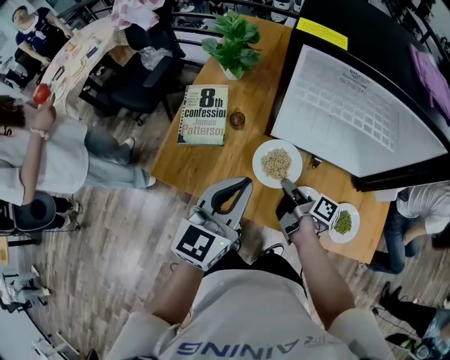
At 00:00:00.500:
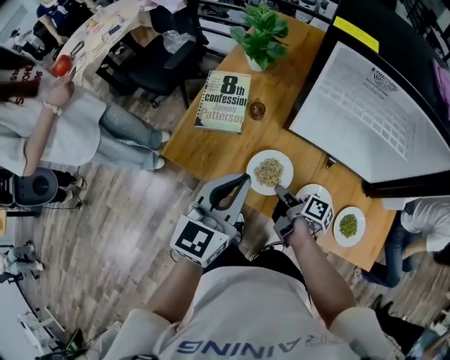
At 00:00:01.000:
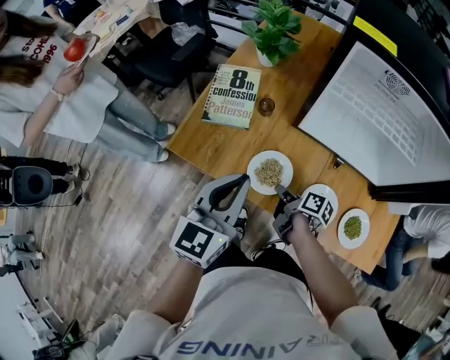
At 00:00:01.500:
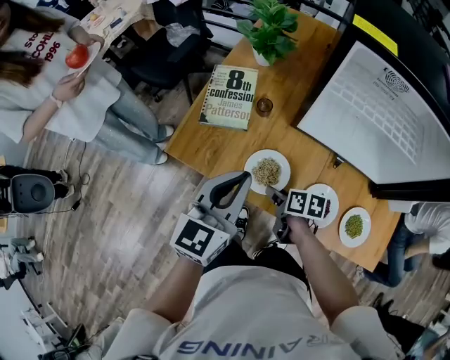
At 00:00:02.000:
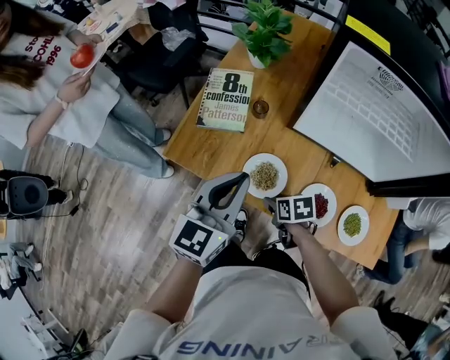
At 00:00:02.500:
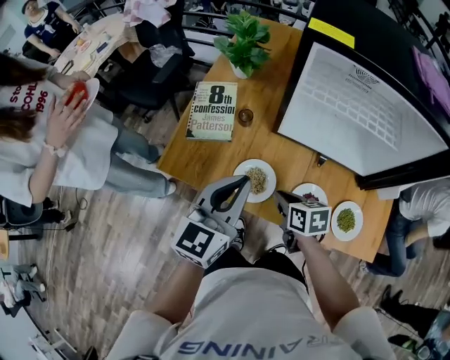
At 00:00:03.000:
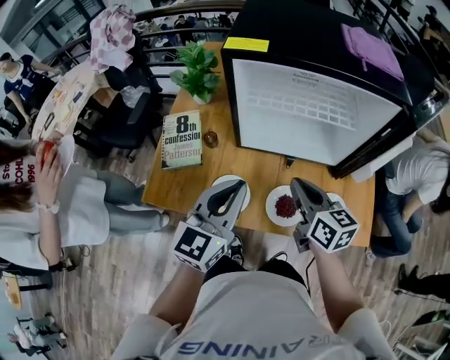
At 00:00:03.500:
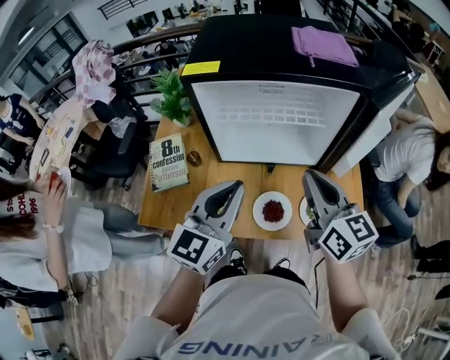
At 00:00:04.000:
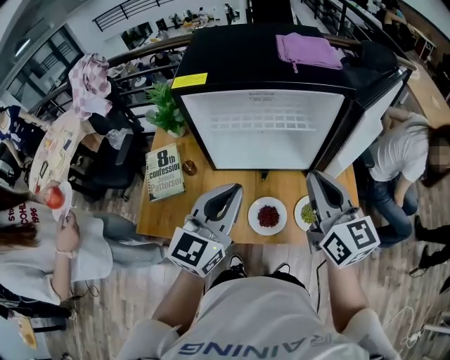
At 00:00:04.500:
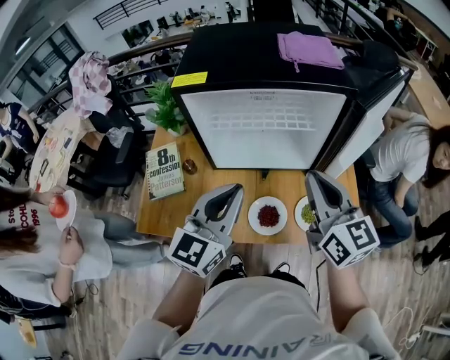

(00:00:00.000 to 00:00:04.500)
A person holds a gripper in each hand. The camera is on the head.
00:00:00.000 - 00:00:02.000: The right gripper heads to the left, downward and backward, covering about 15 cm, tilts its fingers about 40 degrees downward, and opens its fingers. Meanwhile the left gripper goes about 5 cm to the left.
00:00:02.000 - 00:00:04.500: The right gripper is displaced upward by about 40 cm, angles its fingers upward, by approximately 60 degrees, and closes its fingers. Meanwhile the left gripper changes place by some 25 cm, and swivels some 30 degrees.

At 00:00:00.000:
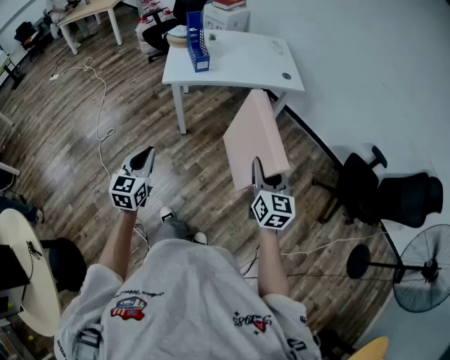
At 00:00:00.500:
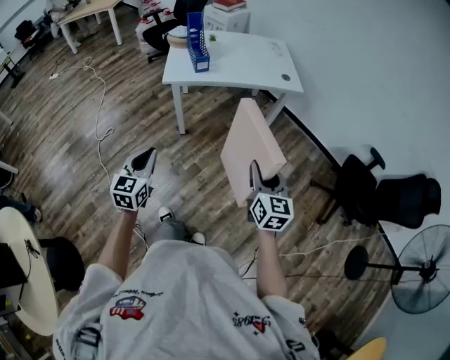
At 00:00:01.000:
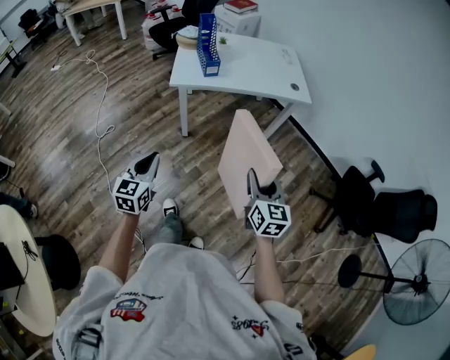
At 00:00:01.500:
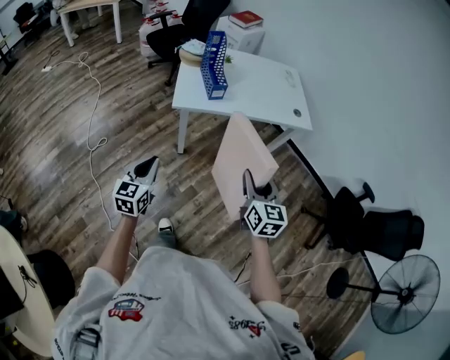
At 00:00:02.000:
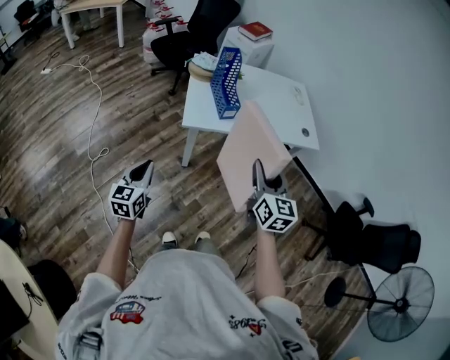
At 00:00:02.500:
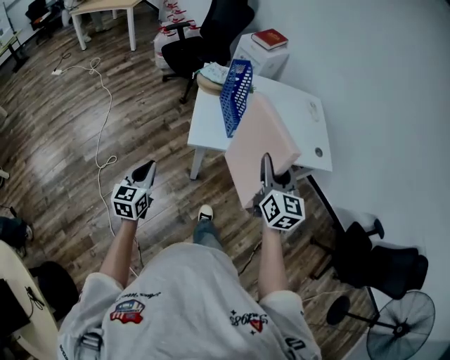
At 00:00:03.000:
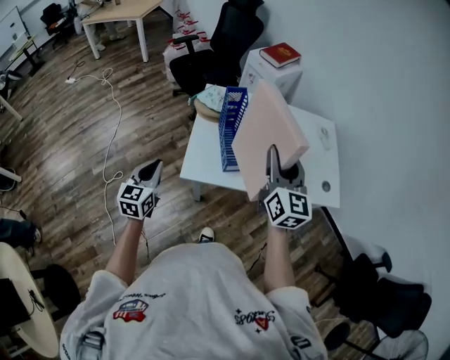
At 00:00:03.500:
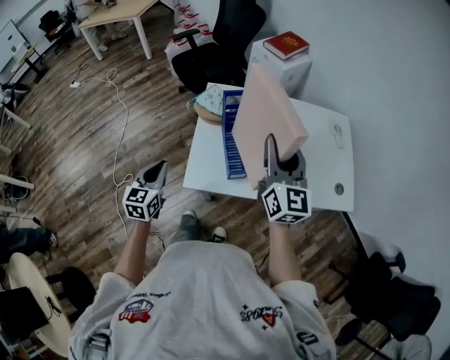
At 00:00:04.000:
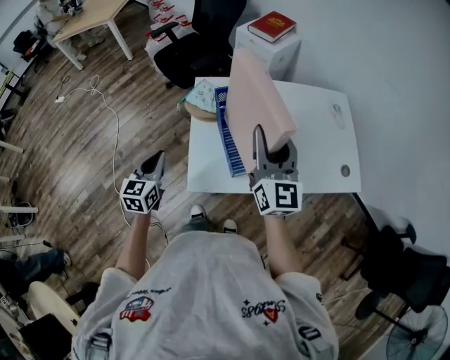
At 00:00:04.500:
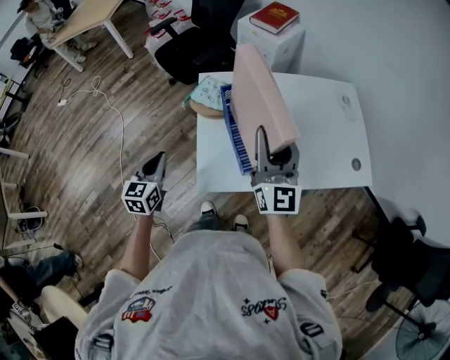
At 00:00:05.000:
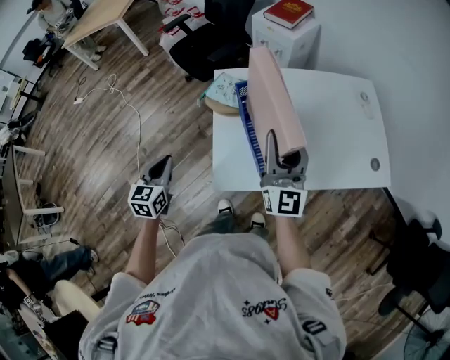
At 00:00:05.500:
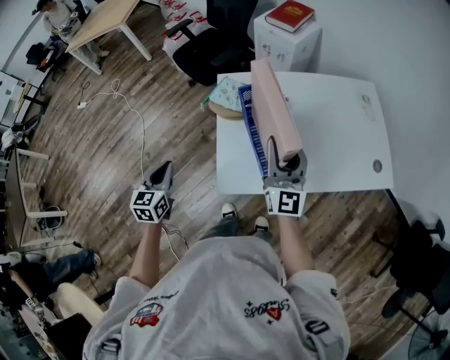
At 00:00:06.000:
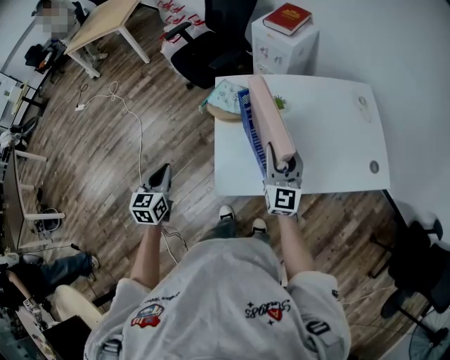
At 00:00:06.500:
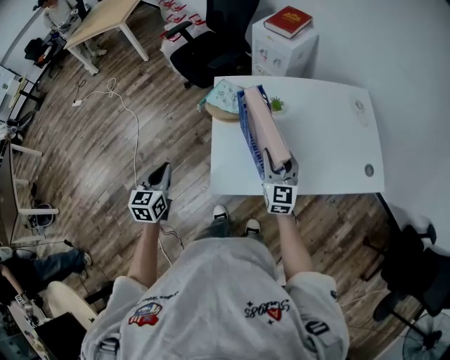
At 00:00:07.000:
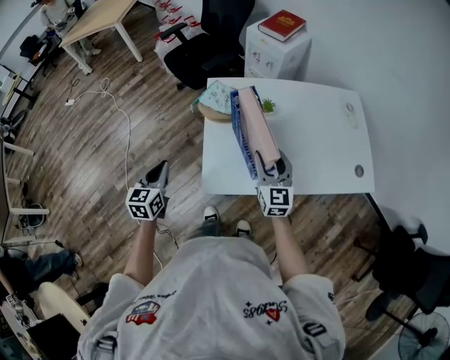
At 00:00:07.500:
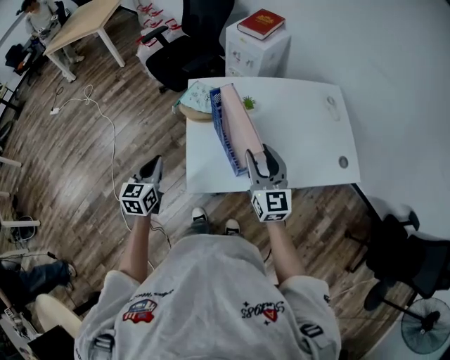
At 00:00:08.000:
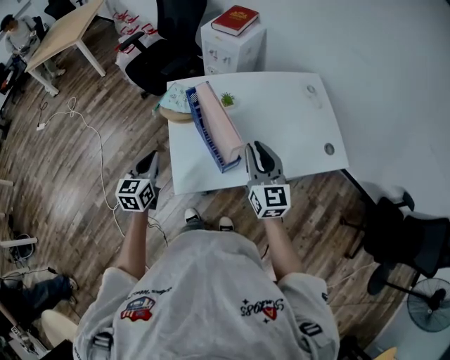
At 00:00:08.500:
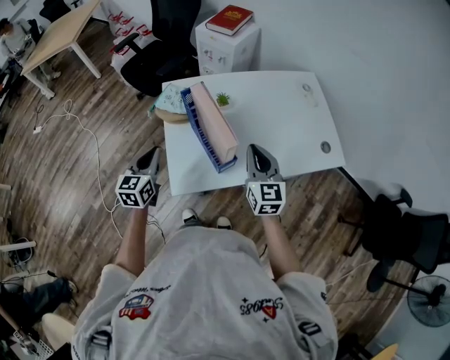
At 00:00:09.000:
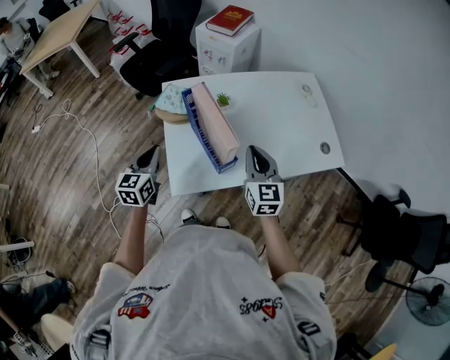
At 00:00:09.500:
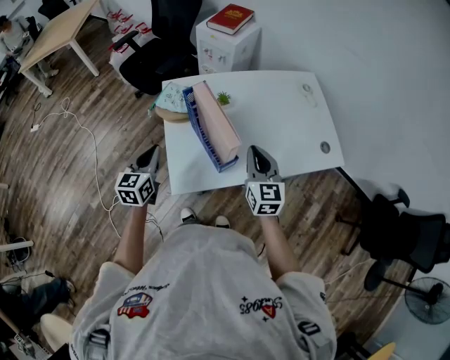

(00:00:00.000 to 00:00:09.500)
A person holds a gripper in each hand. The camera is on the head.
00:00:00.000 - 00:00:02.000: The left gripper goes roughly 35 cm to the left and forward, while the right gripper shifts some 40 cm forward and to the left.
00:00:02.000 - 00:00:04.000: Both grippers are carried forward, roughly 50 cm.
00:00:04.000 - 00:00:05.500: The left gripper is displaced to the left by some 5 cm; the right gripper moves downward, about 10 cm.
00:00:05.500 - 00:00:07.500: The left gripper moves to the right, approximately 5 cm. The right gripper moves approximately 10 cm downward and comes back.
00:00:07.500 - 00:00:09.500: The grippers both shift to the right by approximately 5 cm. The right gripper closes its fingers.

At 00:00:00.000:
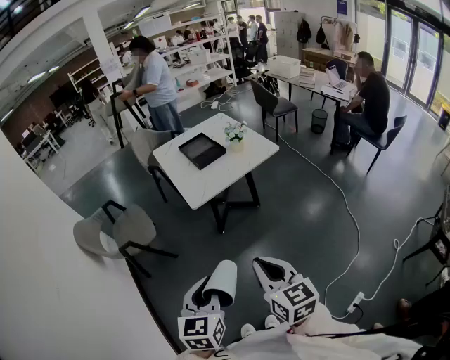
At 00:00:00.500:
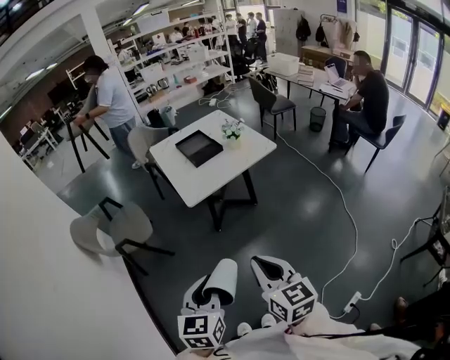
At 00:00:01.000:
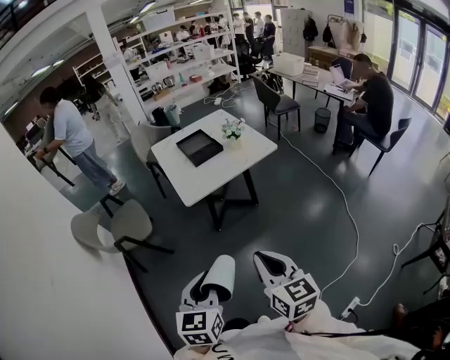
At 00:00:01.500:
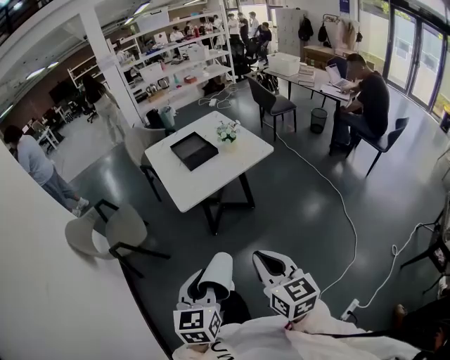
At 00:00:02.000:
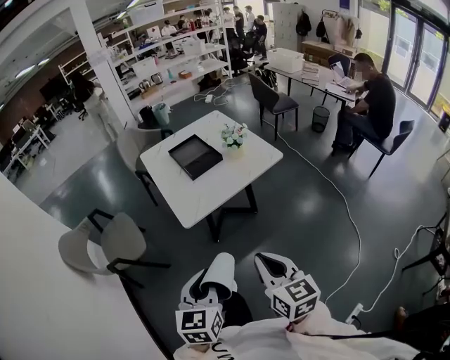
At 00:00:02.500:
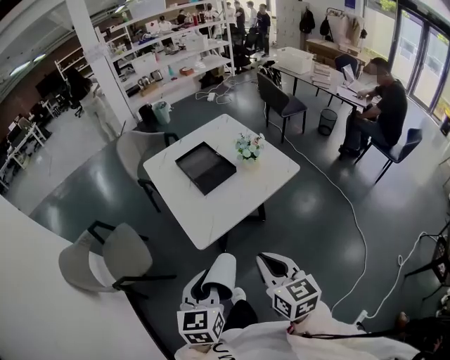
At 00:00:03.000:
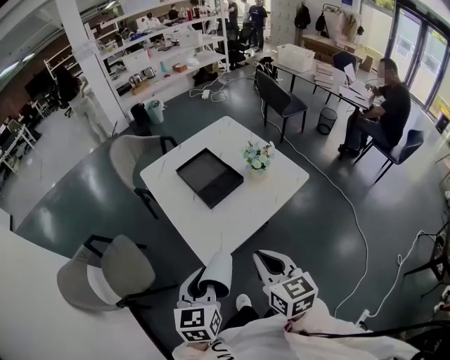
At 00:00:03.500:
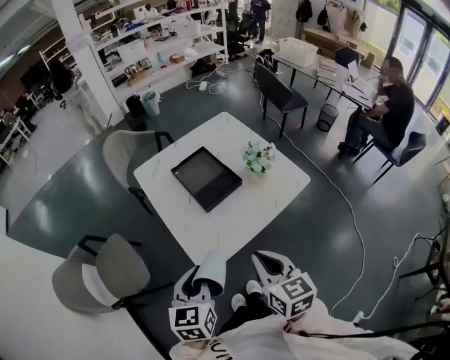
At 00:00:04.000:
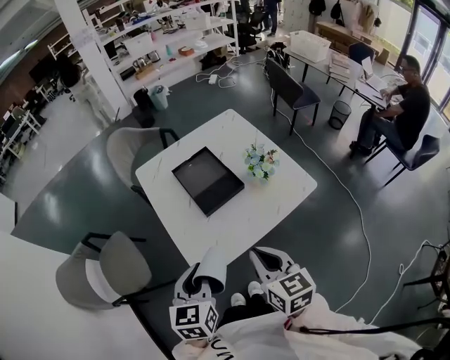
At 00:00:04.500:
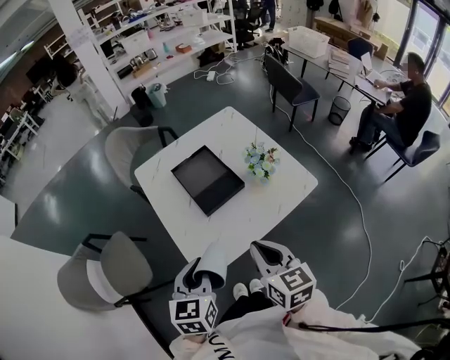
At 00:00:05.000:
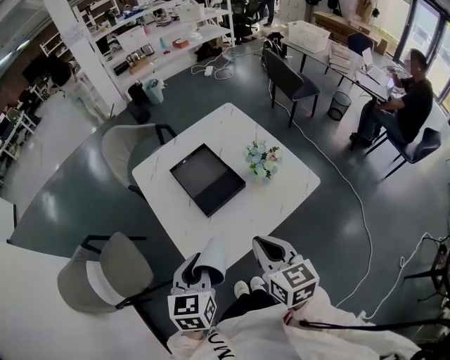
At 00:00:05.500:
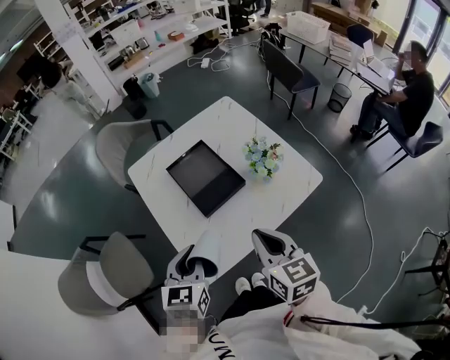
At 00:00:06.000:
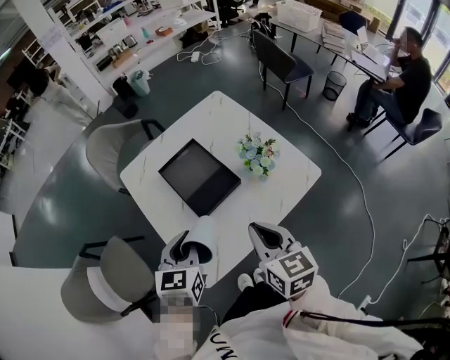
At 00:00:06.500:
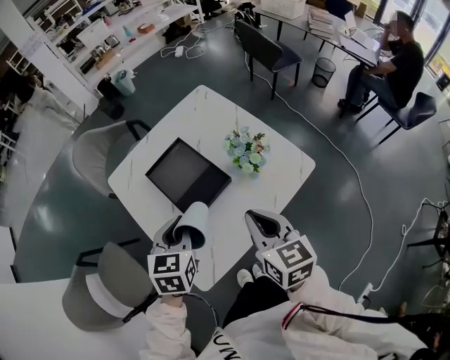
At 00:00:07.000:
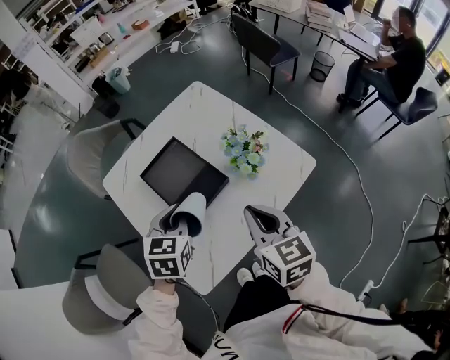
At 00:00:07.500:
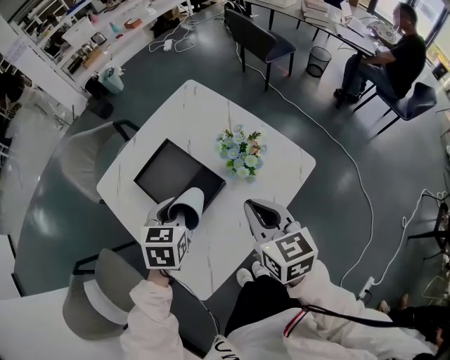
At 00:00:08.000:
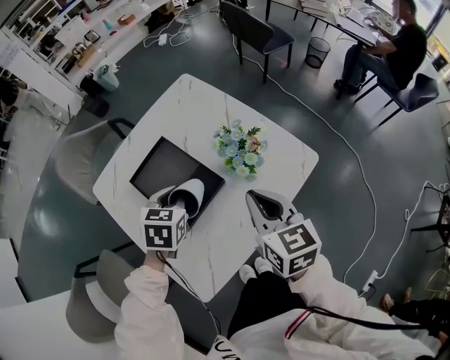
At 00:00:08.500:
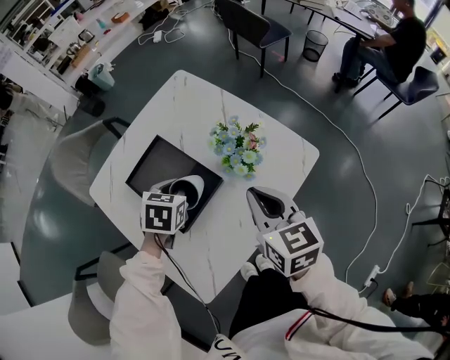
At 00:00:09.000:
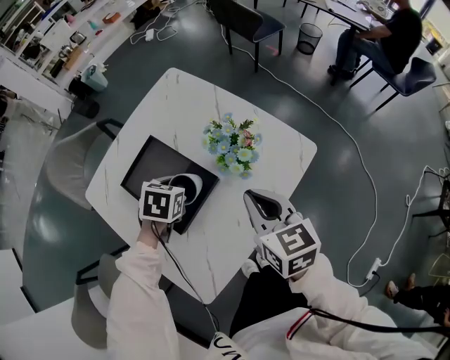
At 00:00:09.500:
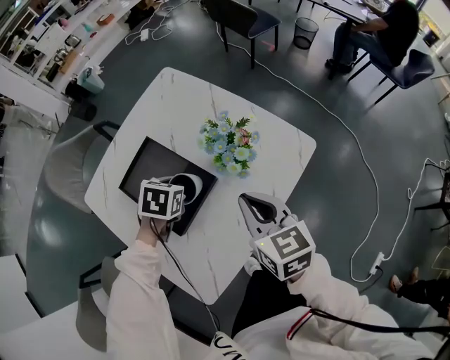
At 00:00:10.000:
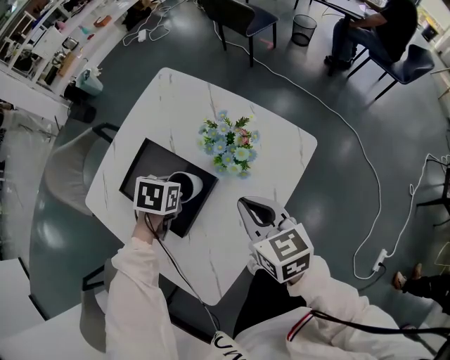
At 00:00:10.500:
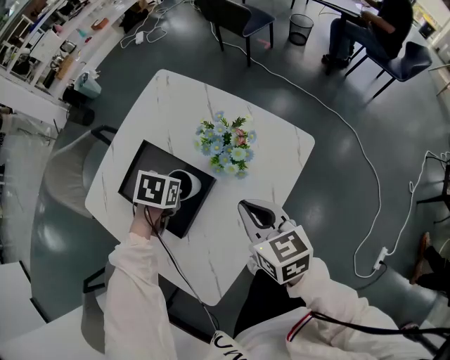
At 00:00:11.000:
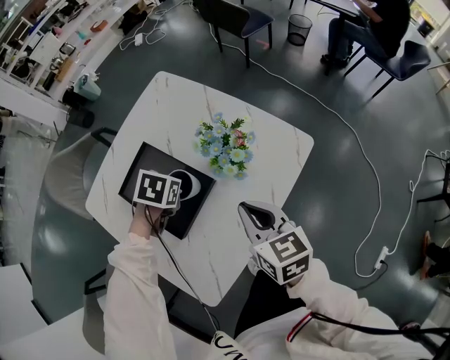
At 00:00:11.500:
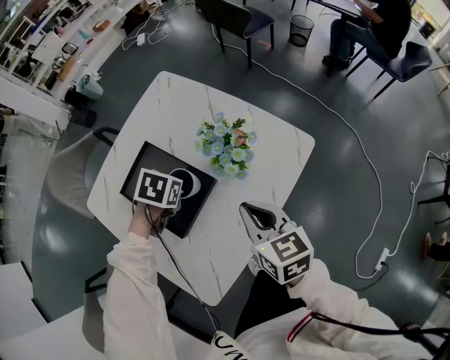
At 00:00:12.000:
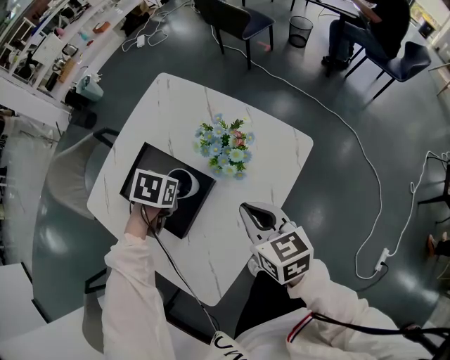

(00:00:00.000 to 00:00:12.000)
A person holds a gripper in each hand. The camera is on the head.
00:00:00.000 - 00:00:02.000: Both grippers travel together forward, about 20 cm.
00:00:02.000 - 00:00:04.000: Both grippers move forward, about 35 cm.
00:00:04.000 - 00:00:06.000: Both grippers move forward, roughly 15 cm.
00:00:06.000 - 00:00:08.000: The right gripper is displaced forward, to the right and downward by approximately 15 cm, while the left gripper shifts approximately 20 cm forward and downward, and changes its angle by approximately 20 degrees.
00:00:08.000 - 00:00:10.000: The left gripper shifts roughly 10 cm downward, and turns by approximately 20 degrees, while the right gripper is displaced downward by some 5 cm.
00:00:10.000 - 00:00:12.000: The left gripper opens its fingers.
